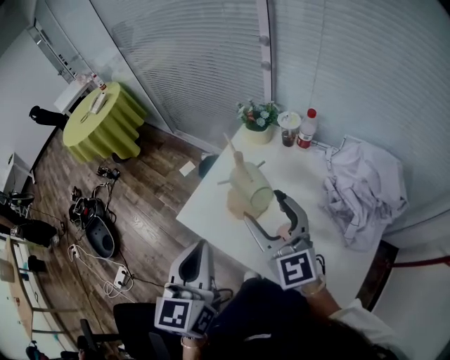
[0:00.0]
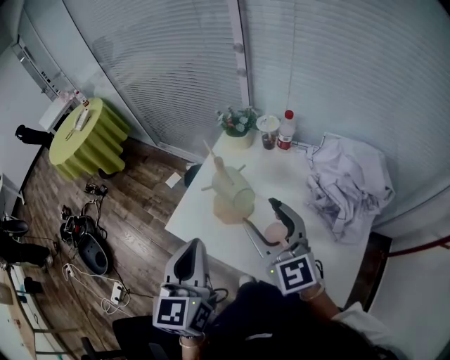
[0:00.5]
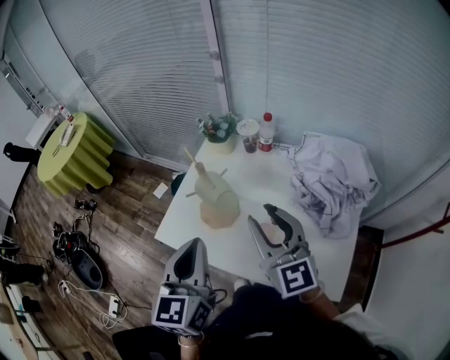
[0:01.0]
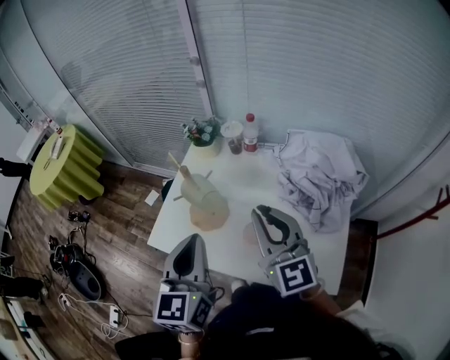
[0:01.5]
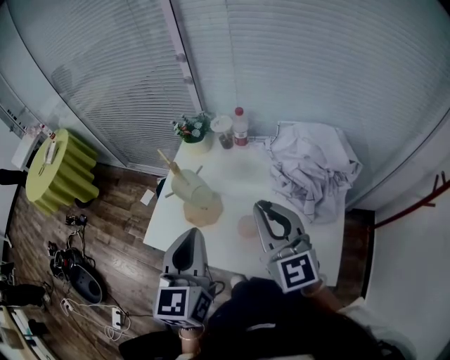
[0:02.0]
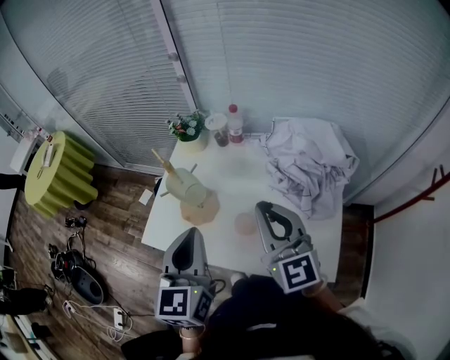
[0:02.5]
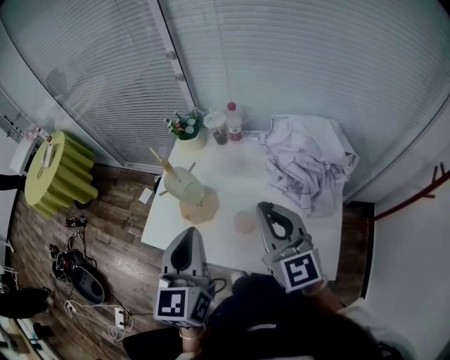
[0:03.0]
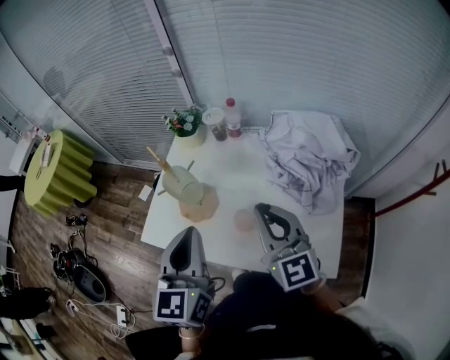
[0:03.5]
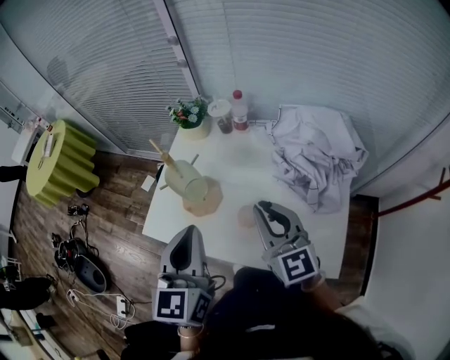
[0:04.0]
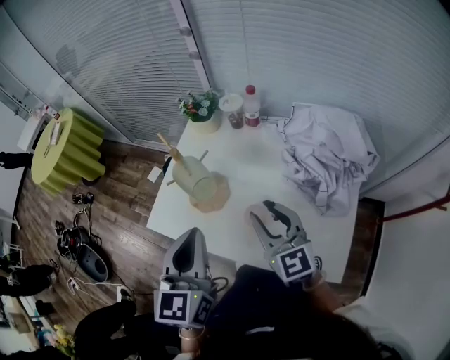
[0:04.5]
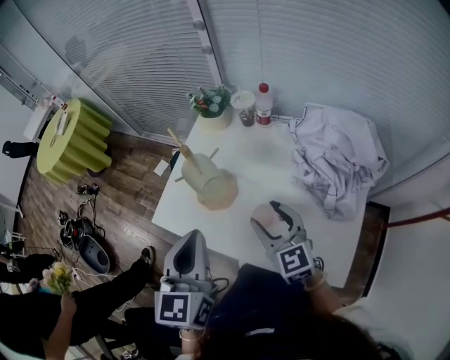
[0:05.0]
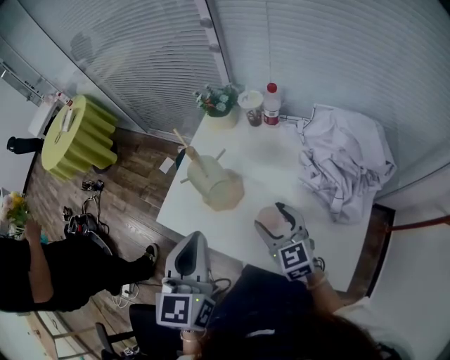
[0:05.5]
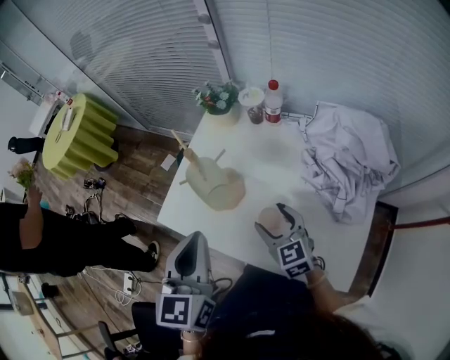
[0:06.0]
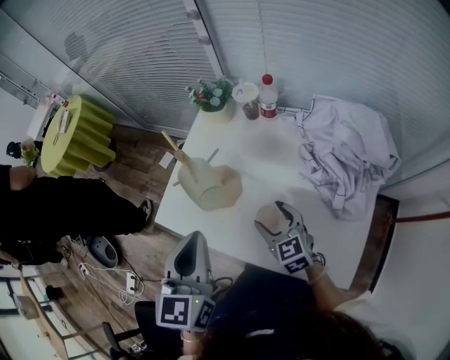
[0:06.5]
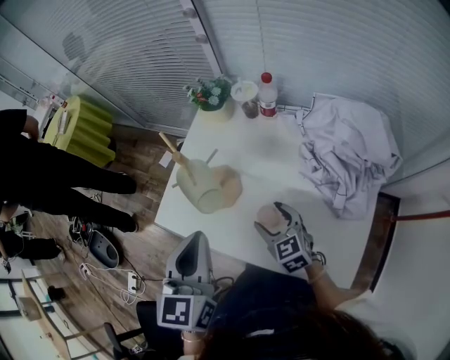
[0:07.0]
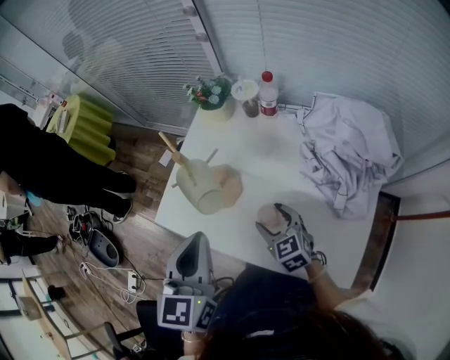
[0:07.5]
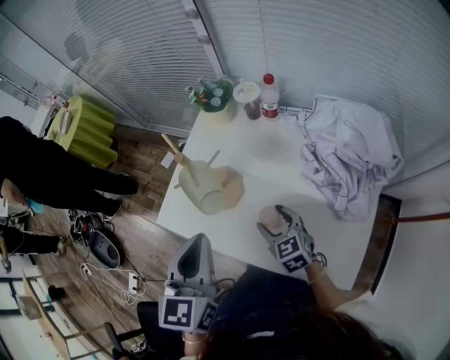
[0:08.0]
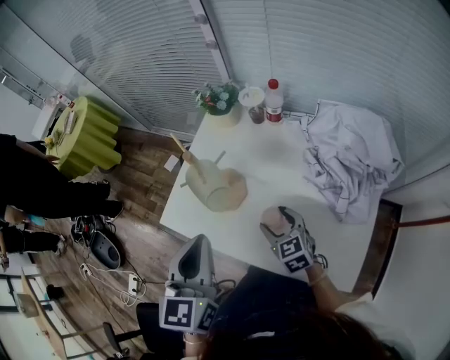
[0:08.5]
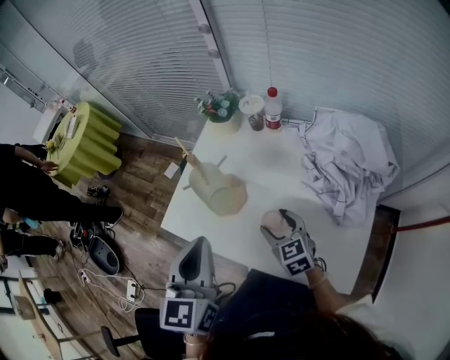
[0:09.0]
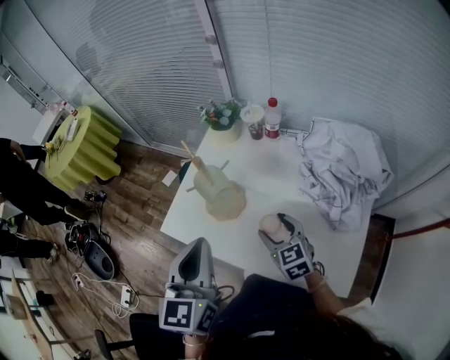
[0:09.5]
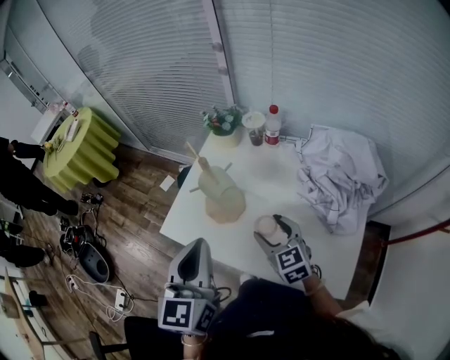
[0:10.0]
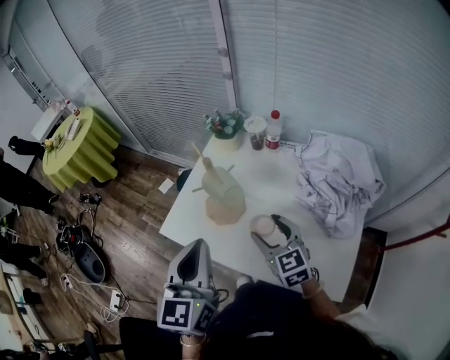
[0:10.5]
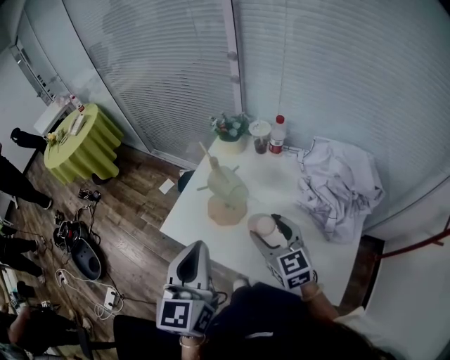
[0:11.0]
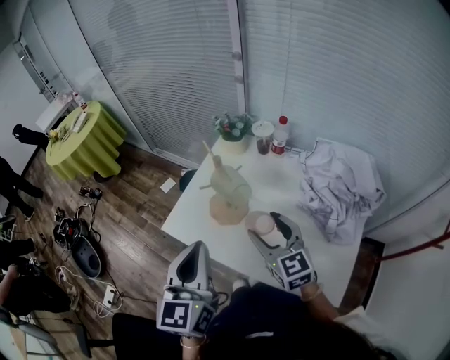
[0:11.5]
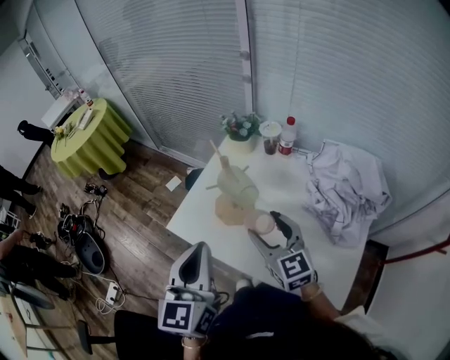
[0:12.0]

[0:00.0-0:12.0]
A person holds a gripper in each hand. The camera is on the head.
0:00.0 to 0:02.0: The left gripper shifts roughly 10 cm to the right; the right gripper goes some 15 cm to the right and backward, and closes up.
0:02.0 to 0:04.0: The right gripper travels downward by some 5 cm.
0:04.0 to 0:06.0: The right gripper is displaced downward by roughly 15 cm, rotates approximately 20 degrees, and opens.
0:06.0 to 0:08.0: The right gripper travels downward by some 5 cm.
0:08.0 to 0:10.0: The left gripper ends up about 5 cm from where it was. Meanwhile the right gripper is displaced upward by roughly 10 cm.
0:10.0 to 0:12.0: The right gripper is displaced upward by roughly 10 cm.

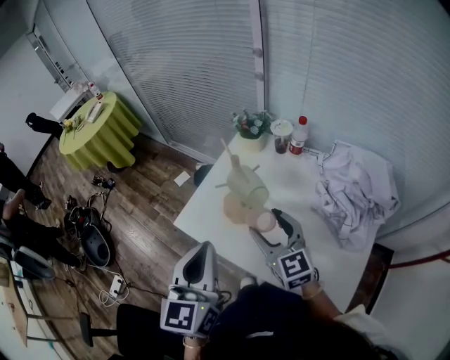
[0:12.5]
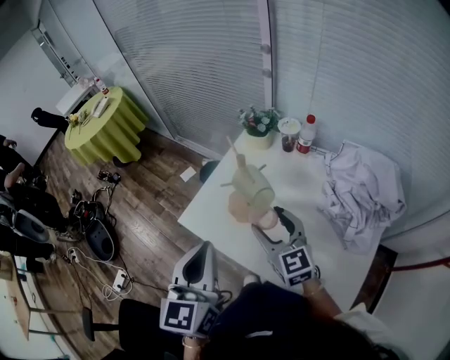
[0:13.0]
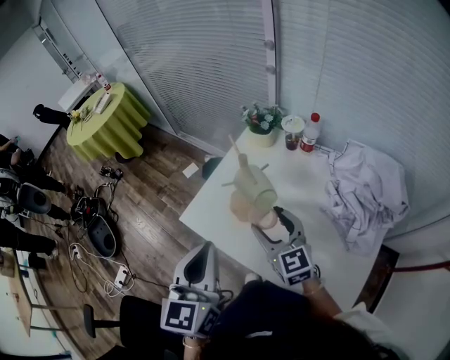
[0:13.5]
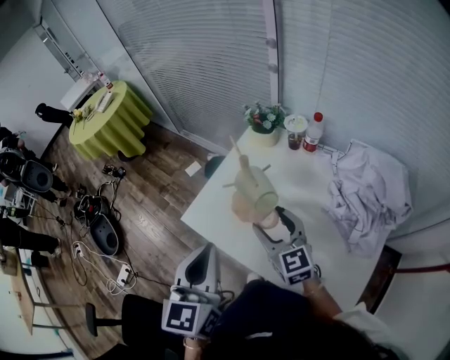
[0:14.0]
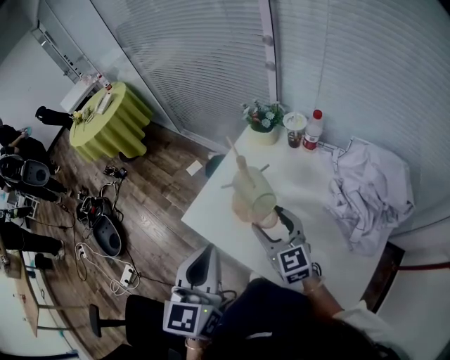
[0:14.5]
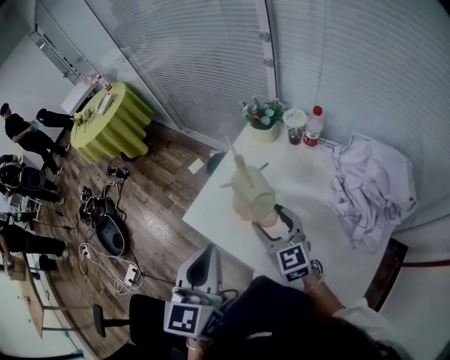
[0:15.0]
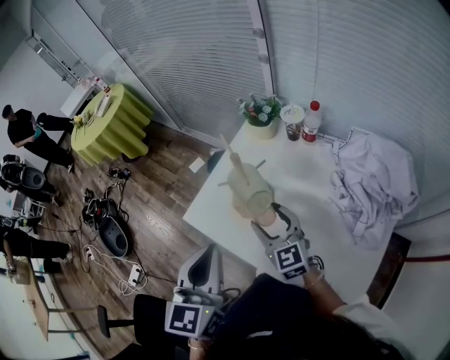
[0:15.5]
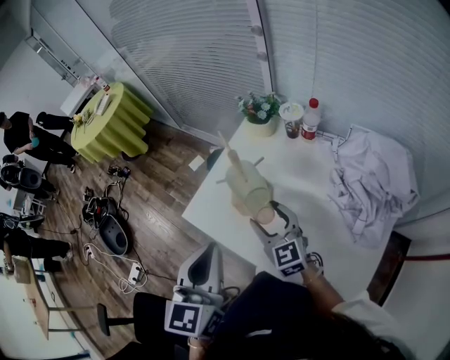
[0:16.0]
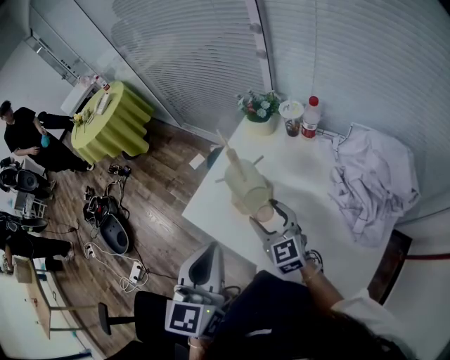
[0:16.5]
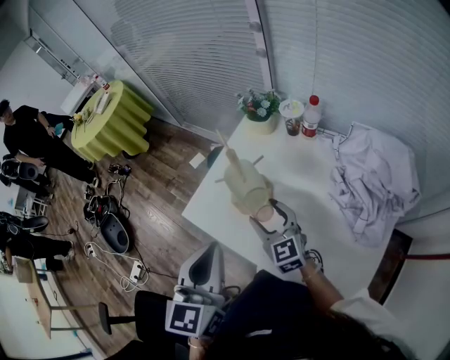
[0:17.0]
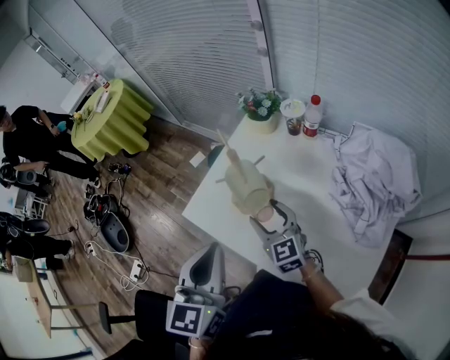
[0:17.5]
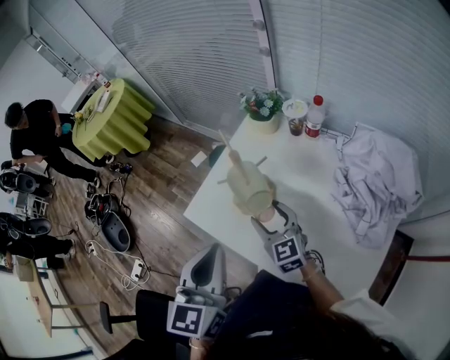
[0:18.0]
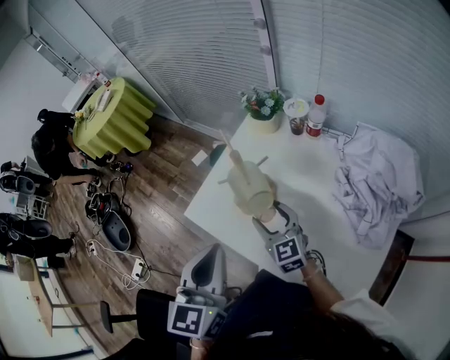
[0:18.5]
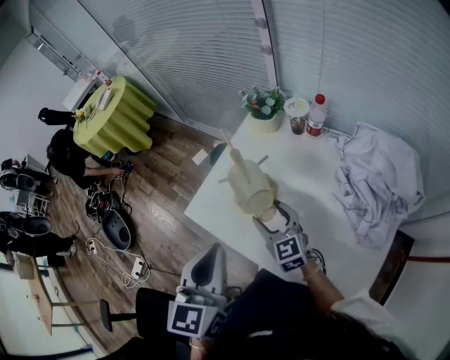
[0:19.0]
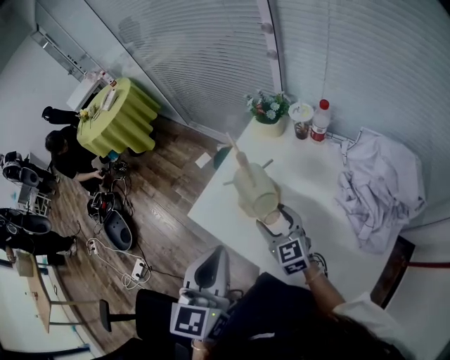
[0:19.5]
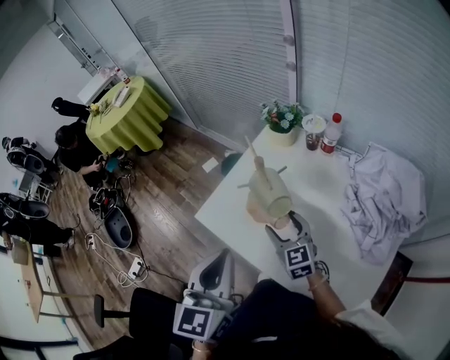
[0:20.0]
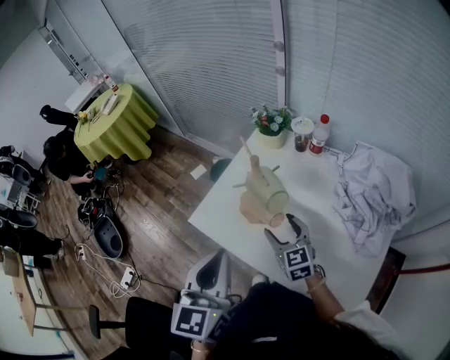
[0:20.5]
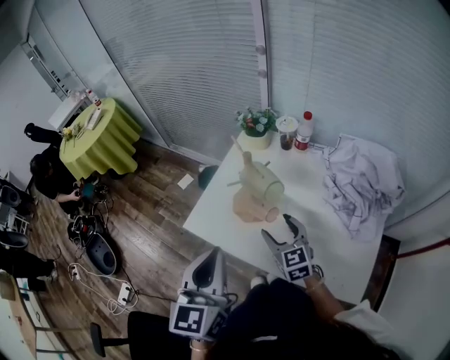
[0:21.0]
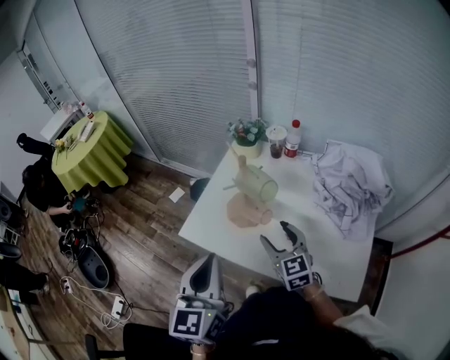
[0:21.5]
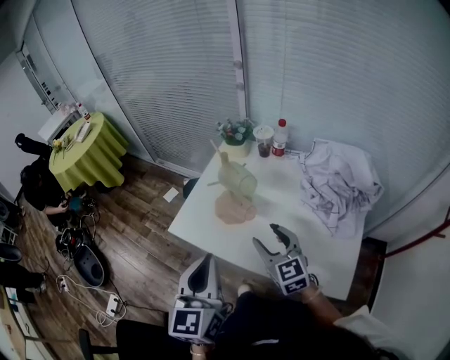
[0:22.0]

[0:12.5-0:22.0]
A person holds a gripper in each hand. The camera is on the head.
0:12.5 to 0:14.5: The right gripper moves some 5 cm.
0:14.5 to 0:18.0: The grippers move only a little.
0:18.0 to 0:20.0: There are only small adjustments of the grippers.
0:20.0 to 0:22.0: The left gripper is displaced backward by some 5 cm, while the right gripper shifts some 15 cm backward and upward.

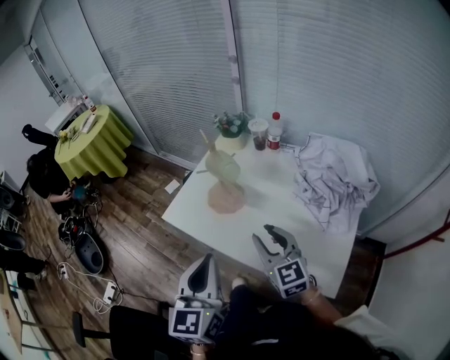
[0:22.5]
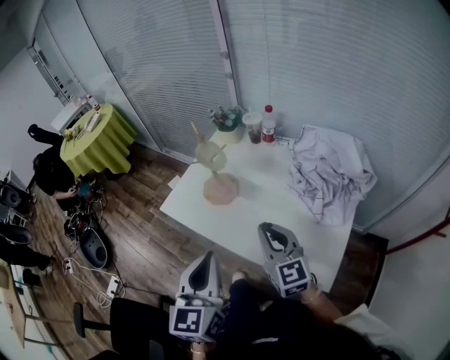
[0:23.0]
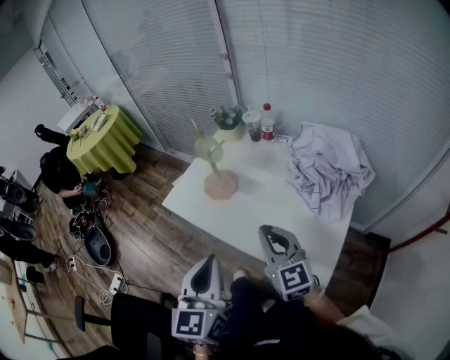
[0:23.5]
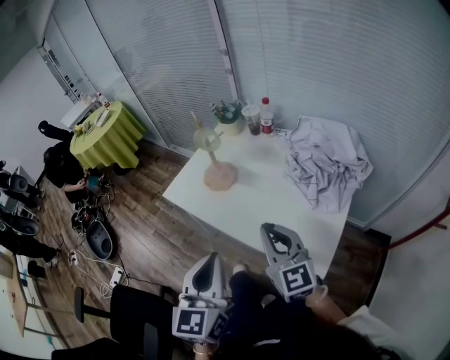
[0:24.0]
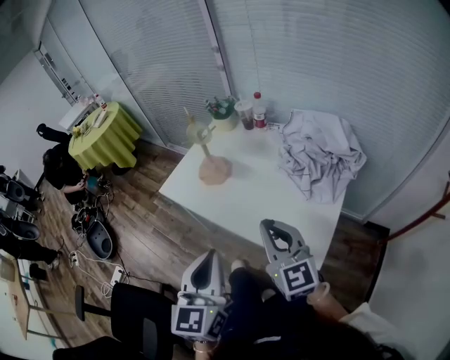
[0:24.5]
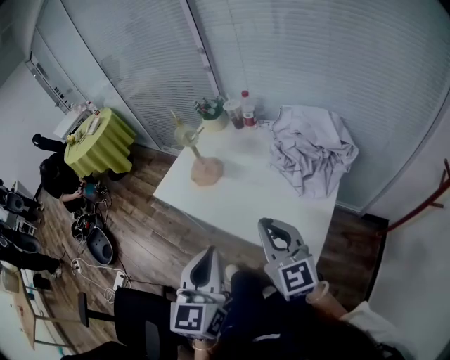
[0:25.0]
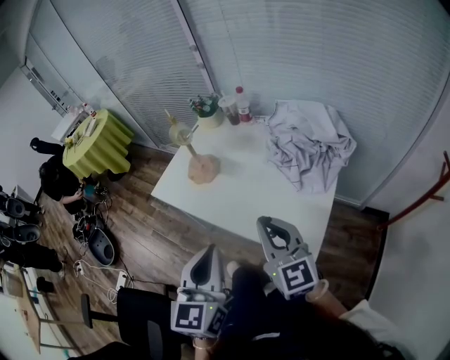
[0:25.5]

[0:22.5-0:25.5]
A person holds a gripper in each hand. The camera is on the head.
0:22.5 to 0:24.0: The left gripper heads backward and to the right, covering about 15 cm, while the right gripper is displaced backward and upward by some 15 cm, and closes its fingers.
0:24.0 to 0:25.5: The left gripper ends up about 5 cm from where it was, while the right gripper moves about 5 cm.

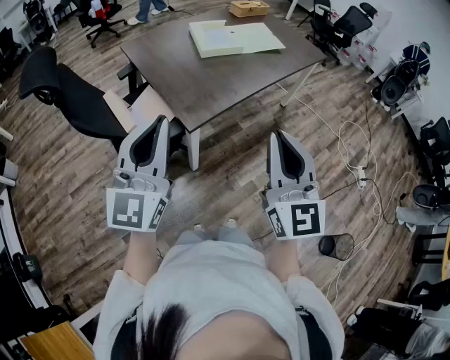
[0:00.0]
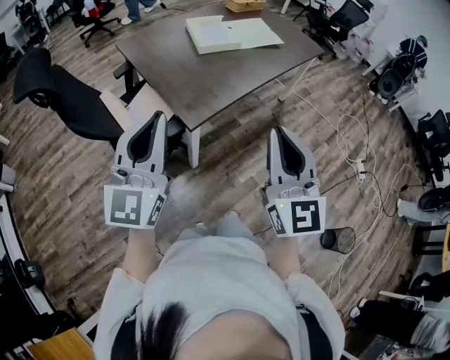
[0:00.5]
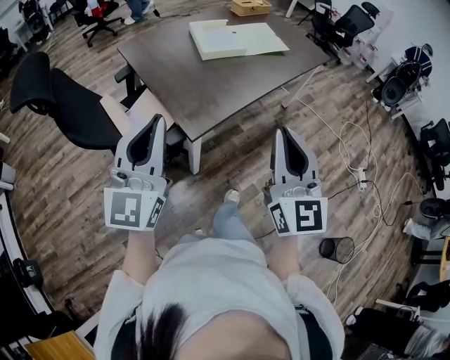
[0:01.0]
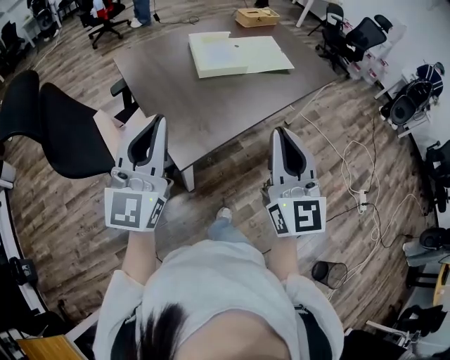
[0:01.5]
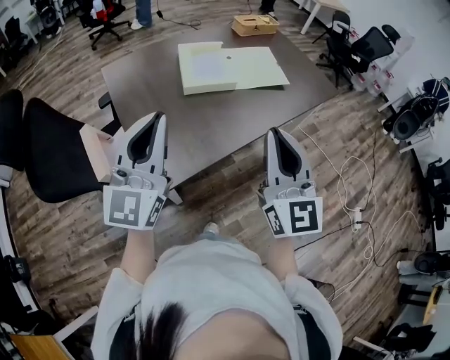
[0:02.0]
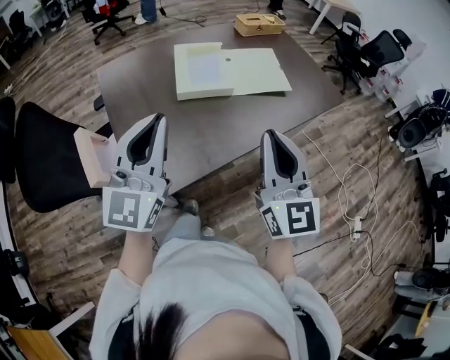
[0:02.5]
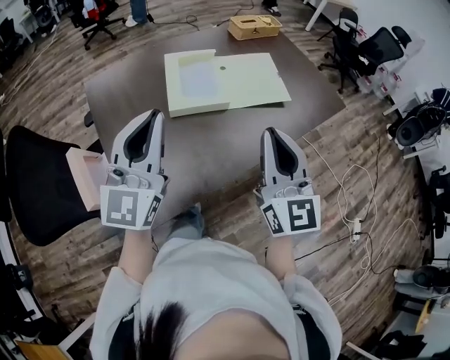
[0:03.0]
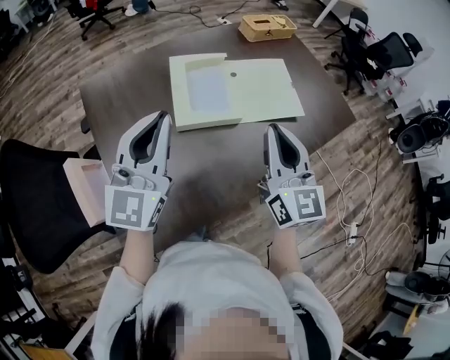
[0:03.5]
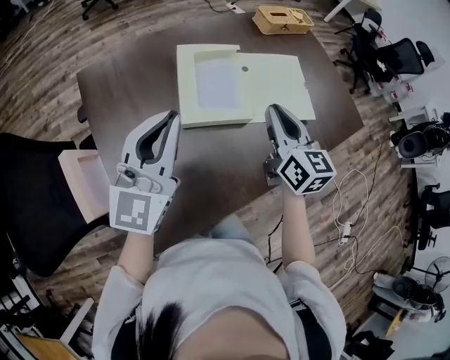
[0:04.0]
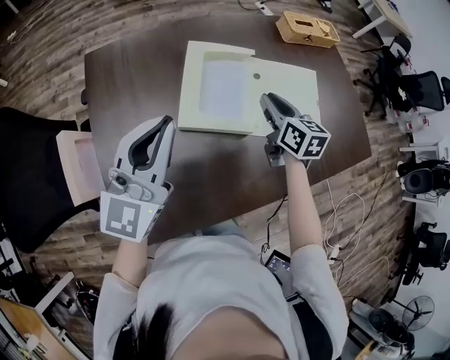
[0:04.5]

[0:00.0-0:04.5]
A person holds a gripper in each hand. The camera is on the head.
0:00.0 to 0:02.0: Both grippers travel together forward, roughly 30 cm.
0:02.0 to 0:04.5: The right gripper heads forward and downward, covering about 60 cm, and angles its fingers downward, by approximately 30 degrees. Meanwhile the left gripper shifts roughly 35 cm forward.
